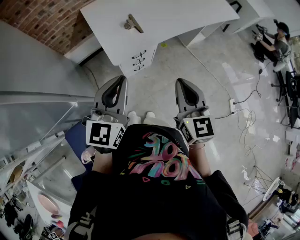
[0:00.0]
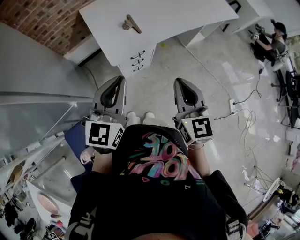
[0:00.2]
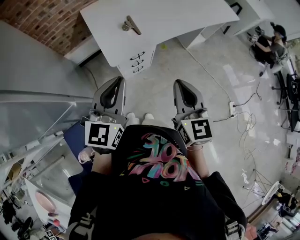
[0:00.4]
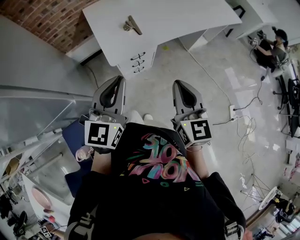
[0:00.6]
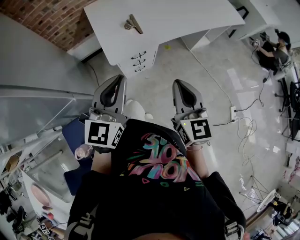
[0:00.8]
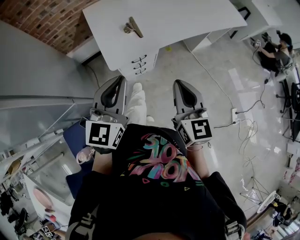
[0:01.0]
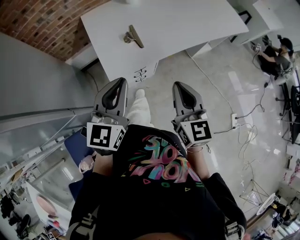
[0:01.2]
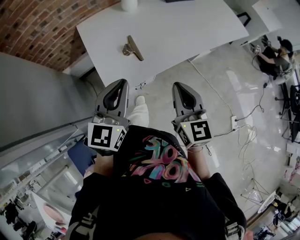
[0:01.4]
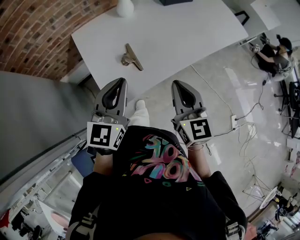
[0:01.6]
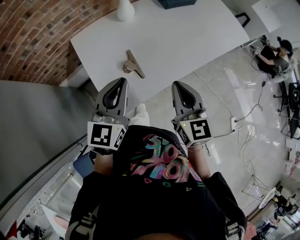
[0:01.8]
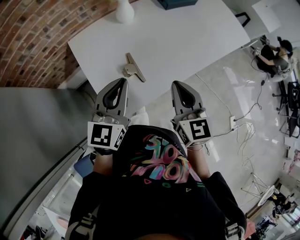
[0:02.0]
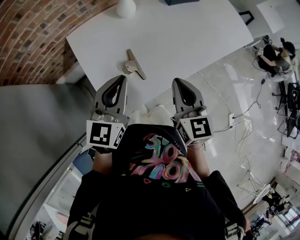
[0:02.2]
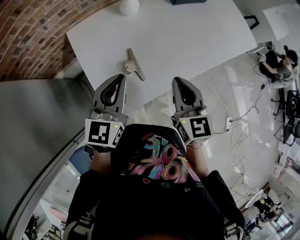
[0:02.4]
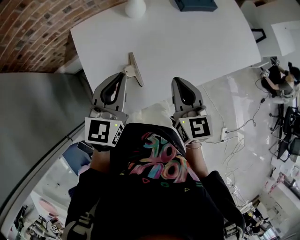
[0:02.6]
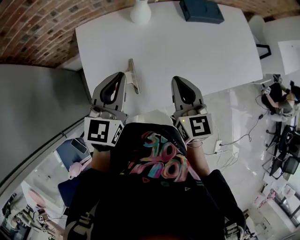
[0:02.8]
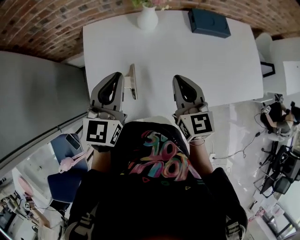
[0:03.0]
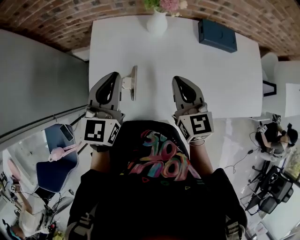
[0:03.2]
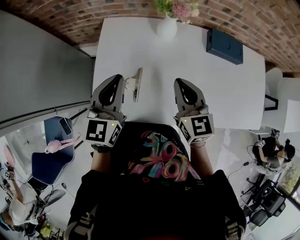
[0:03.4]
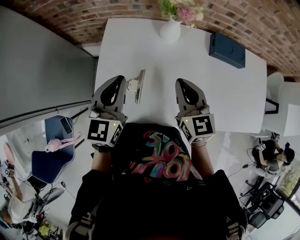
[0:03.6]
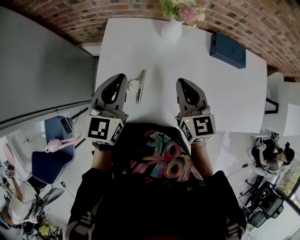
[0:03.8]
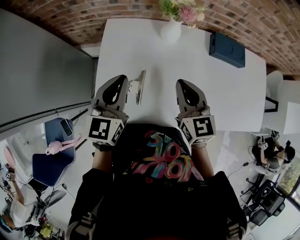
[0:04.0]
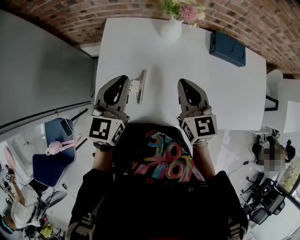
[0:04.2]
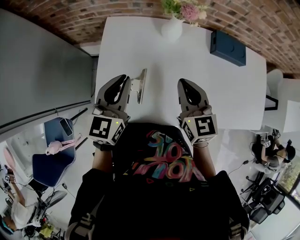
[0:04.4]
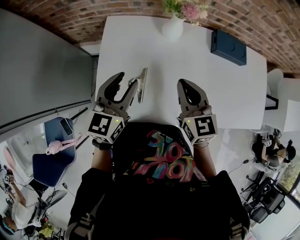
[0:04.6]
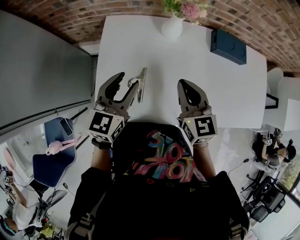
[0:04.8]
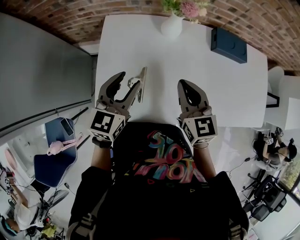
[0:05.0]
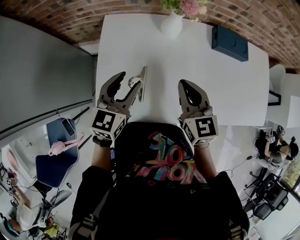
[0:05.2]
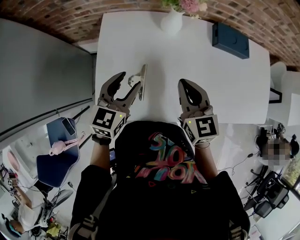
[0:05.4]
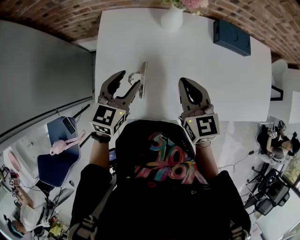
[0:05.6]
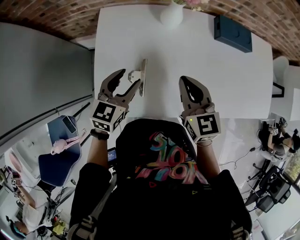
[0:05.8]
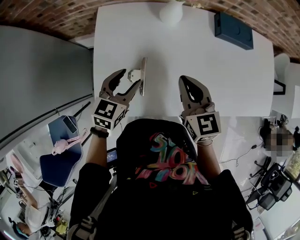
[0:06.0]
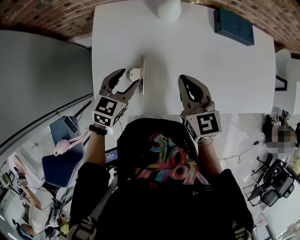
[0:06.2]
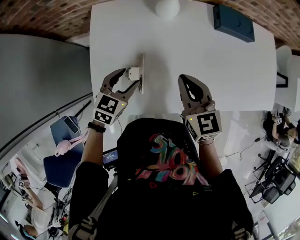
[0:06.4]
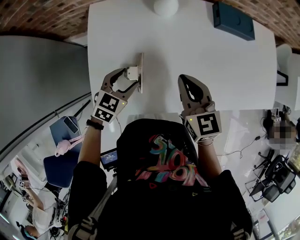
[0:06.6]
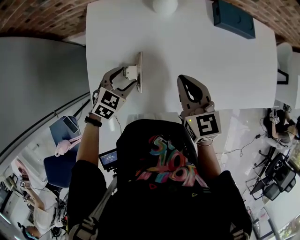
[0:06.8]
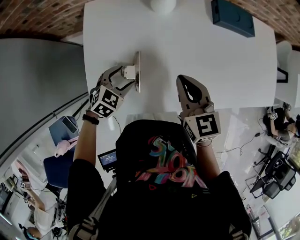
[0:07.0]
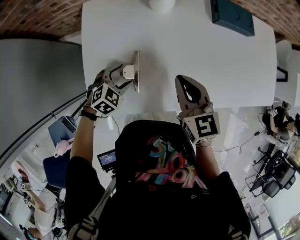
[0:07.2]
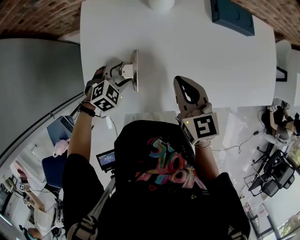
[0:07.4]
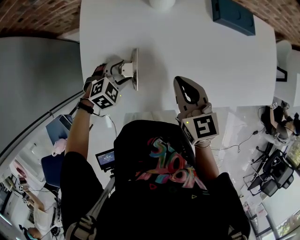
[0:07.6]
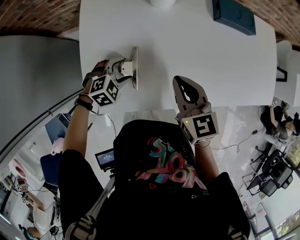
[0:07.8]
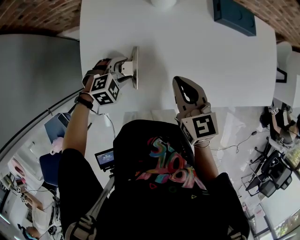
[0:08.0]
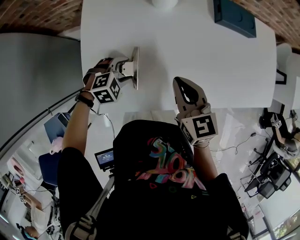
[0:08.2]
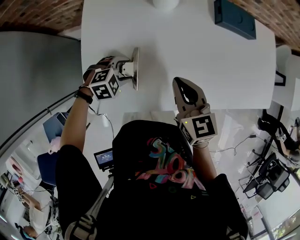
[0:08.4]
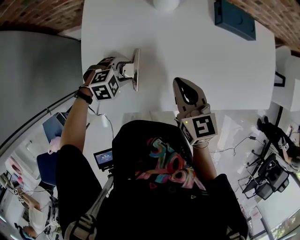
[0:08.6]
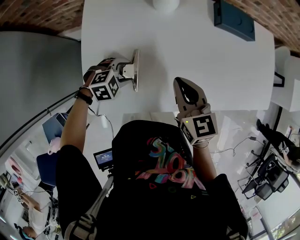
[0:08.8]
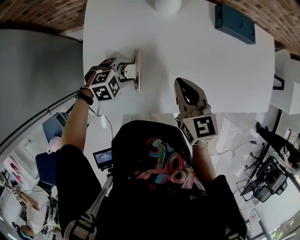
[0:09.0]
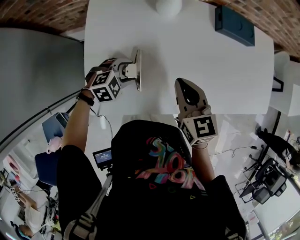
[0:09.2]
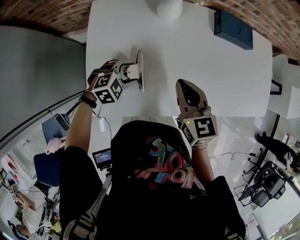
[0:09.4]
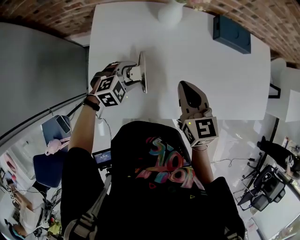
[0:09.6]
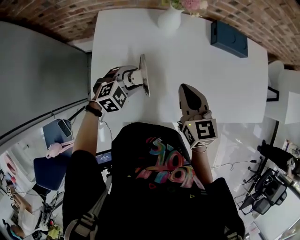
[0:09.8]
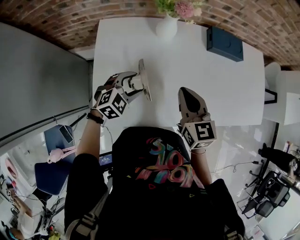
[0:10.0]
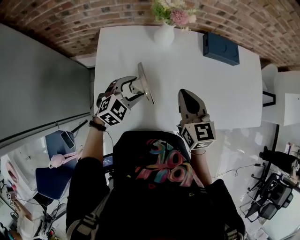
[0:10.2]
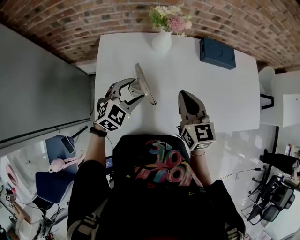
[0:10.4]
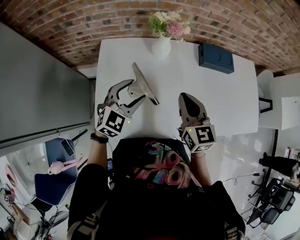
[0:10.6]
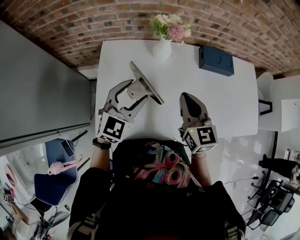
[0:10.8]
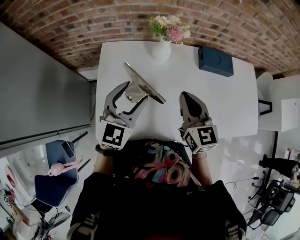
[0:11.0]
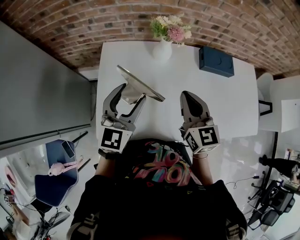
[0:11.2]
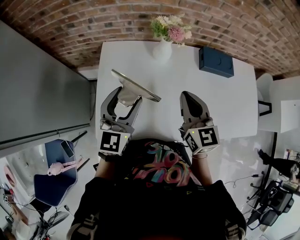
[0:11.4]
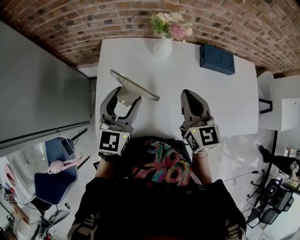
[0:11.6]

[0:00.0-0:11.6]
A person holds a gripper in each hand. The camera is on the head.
0:00.0 to 0:01.4: The two grippers go approximately 20 cm forward.
0:01.4 to 0:02.8: The grippers both shift forward by roughly 30 cm.
0:02.8 to 0:04.4: The right gripper goes some 10 cm forward, and swivels about 20 degrees.
0:04.4 to 0:05.8: The right gripper moves some 5 cm. Meanwhile the left gripper travels downward by about 10 cm, and opens up.
0:05.8 to 0:07.2: The left gripper goes some 15 cm downward, and rotates approximately 40 degrees.
0:07.2 to 0:08.8: The left gripper rotates some 20 degrees.
0:08.8 to 0:10.2: The left gripper moves upward, some 15 cm, and changes its angle by roughly 30 degrees, while the right gripper is displaced upward by some 10 cm.
0:10.2 to 0:11.6: The right gripper moves upward, about 5 cm. The left gripper travels upward by roughly 15 cm, and tips its fingers upward by about 30 degrees.

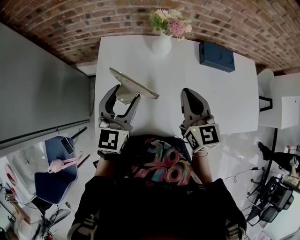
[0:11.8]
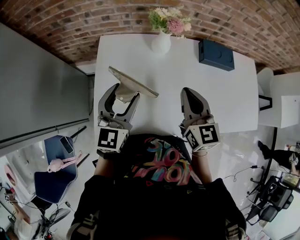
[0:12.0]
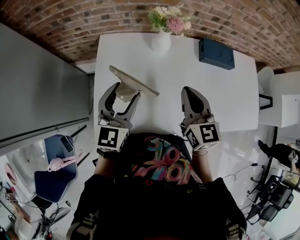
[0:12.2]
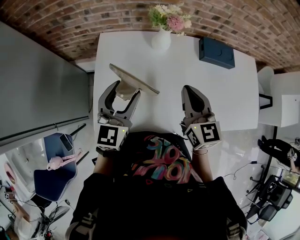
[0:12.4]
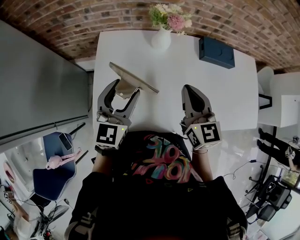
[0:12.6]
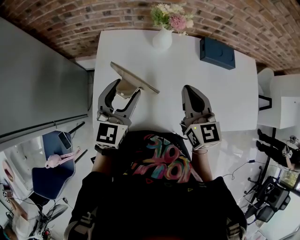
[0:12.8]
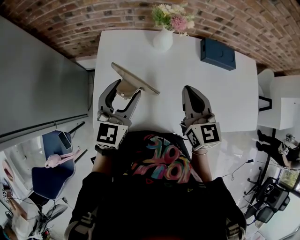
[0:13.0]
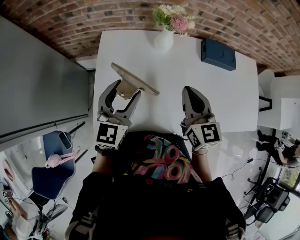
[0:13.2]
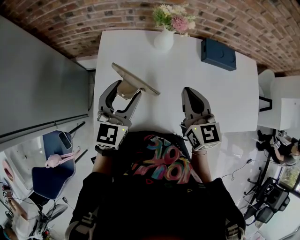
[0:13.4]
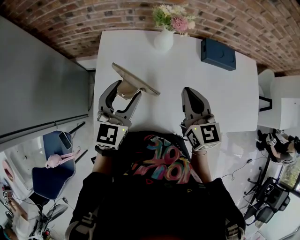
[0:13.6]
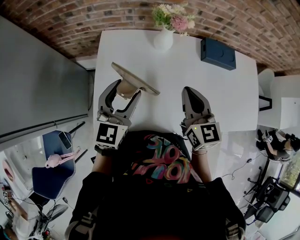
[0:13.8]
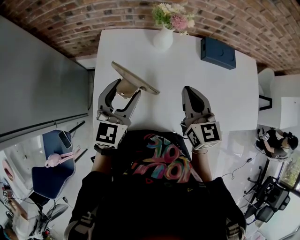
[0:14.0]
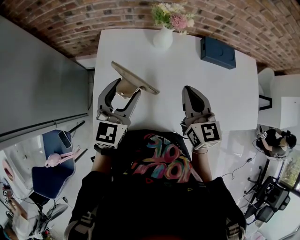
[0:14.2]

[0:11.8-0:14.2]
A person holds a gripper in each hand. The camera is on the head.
0:11.8 to 0:13.0: The grippers stay close to where they were, moving slightly.
0:13.0 to 0:14.2: Neither gripper changes place.

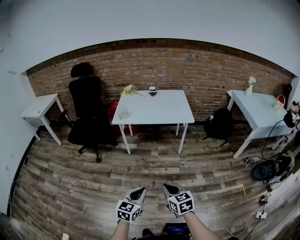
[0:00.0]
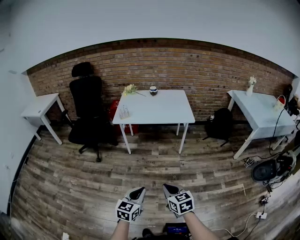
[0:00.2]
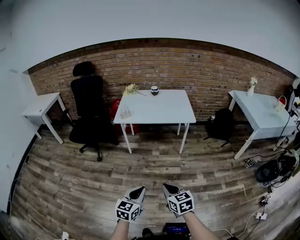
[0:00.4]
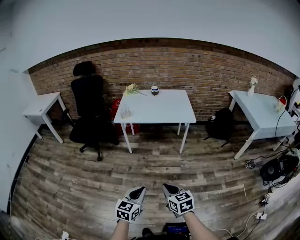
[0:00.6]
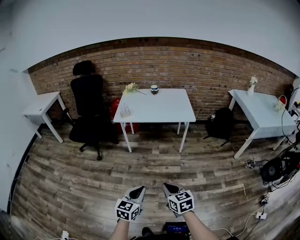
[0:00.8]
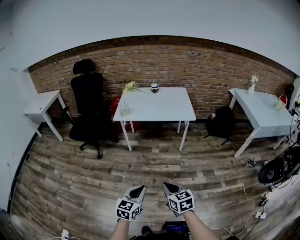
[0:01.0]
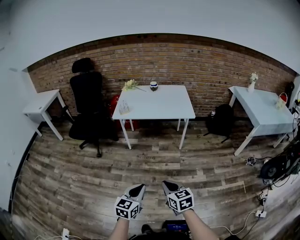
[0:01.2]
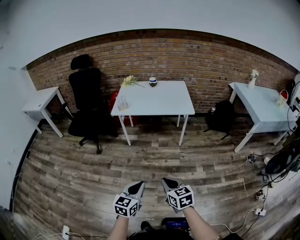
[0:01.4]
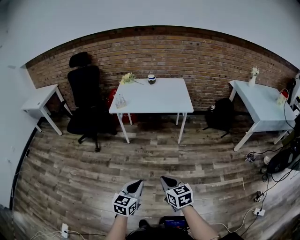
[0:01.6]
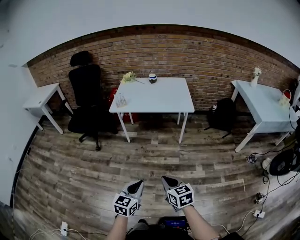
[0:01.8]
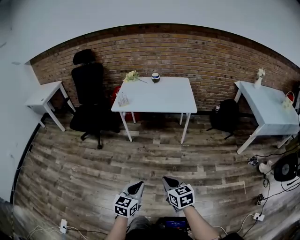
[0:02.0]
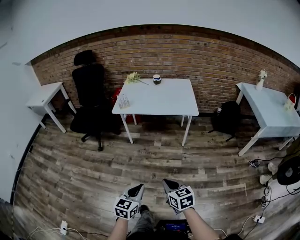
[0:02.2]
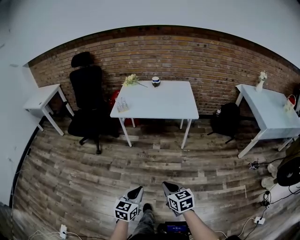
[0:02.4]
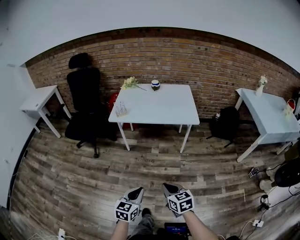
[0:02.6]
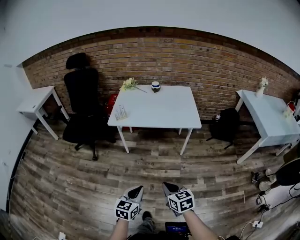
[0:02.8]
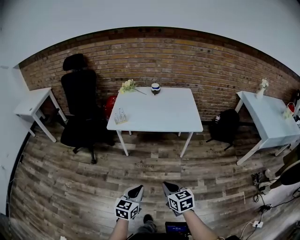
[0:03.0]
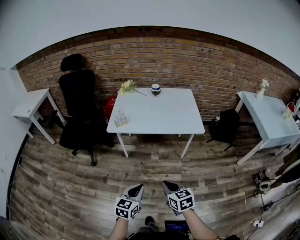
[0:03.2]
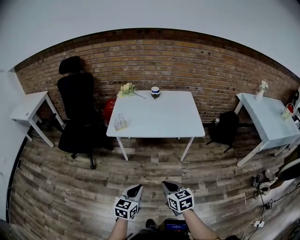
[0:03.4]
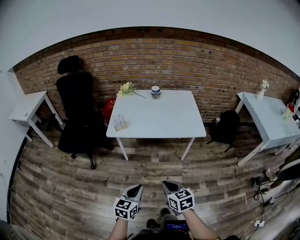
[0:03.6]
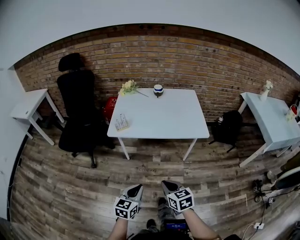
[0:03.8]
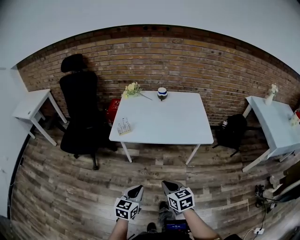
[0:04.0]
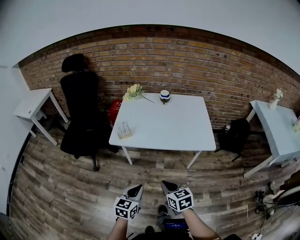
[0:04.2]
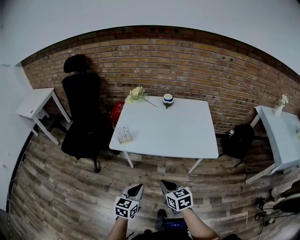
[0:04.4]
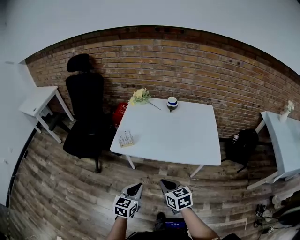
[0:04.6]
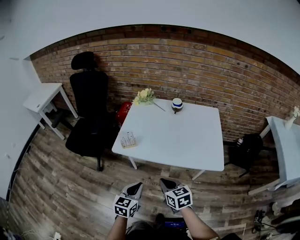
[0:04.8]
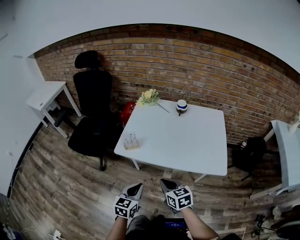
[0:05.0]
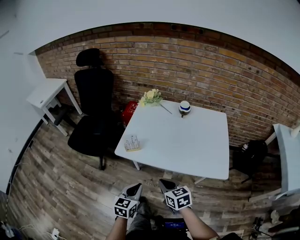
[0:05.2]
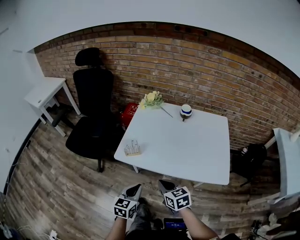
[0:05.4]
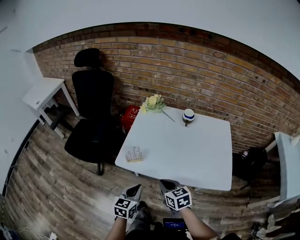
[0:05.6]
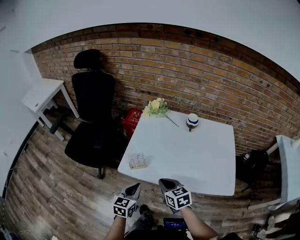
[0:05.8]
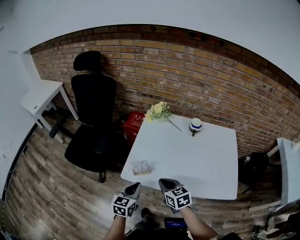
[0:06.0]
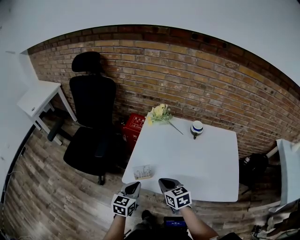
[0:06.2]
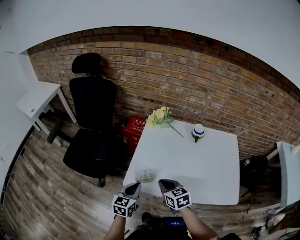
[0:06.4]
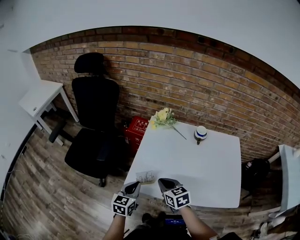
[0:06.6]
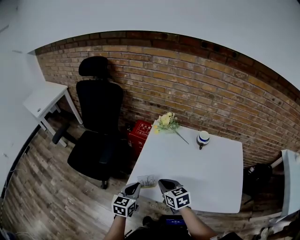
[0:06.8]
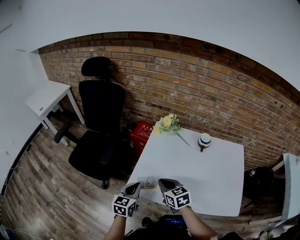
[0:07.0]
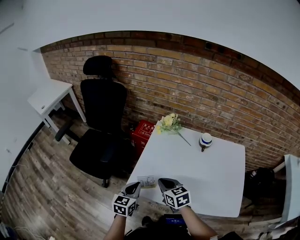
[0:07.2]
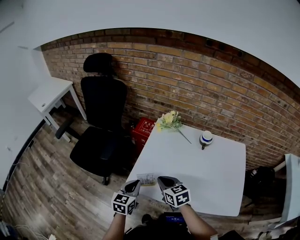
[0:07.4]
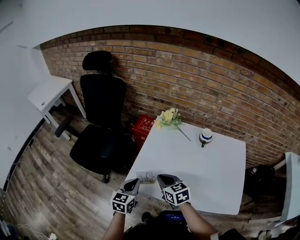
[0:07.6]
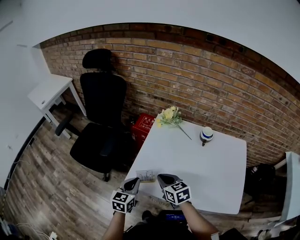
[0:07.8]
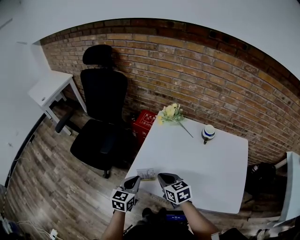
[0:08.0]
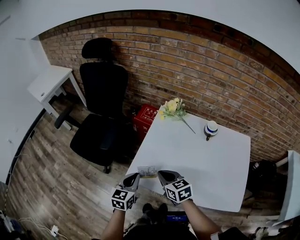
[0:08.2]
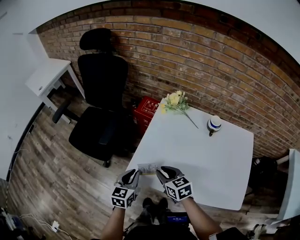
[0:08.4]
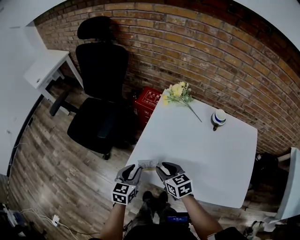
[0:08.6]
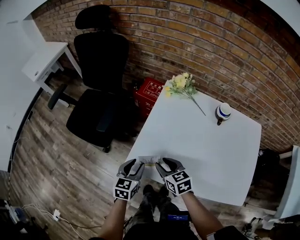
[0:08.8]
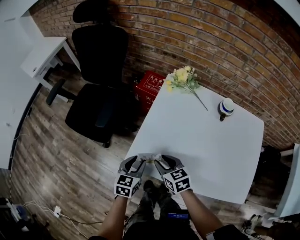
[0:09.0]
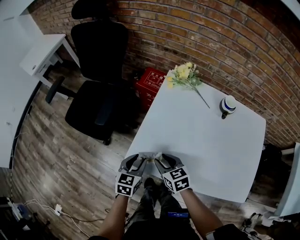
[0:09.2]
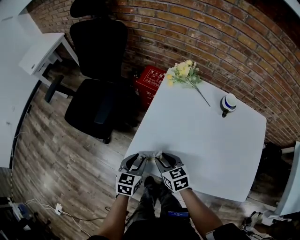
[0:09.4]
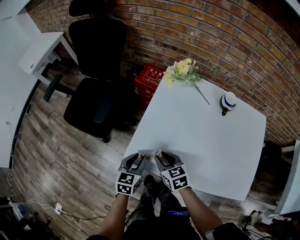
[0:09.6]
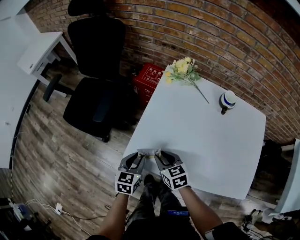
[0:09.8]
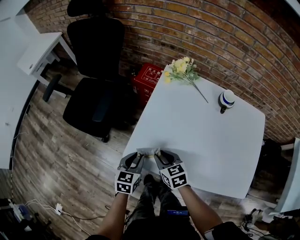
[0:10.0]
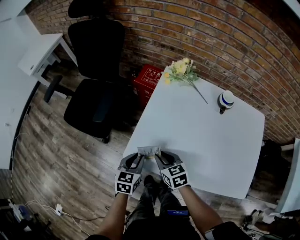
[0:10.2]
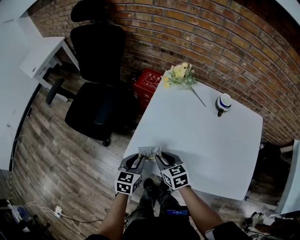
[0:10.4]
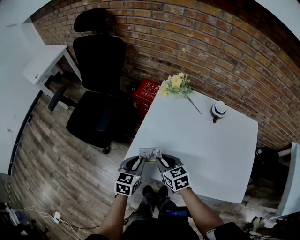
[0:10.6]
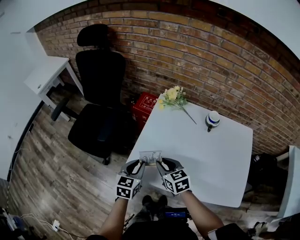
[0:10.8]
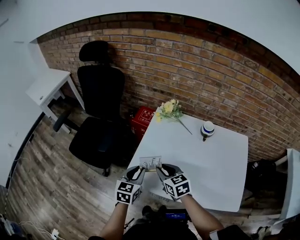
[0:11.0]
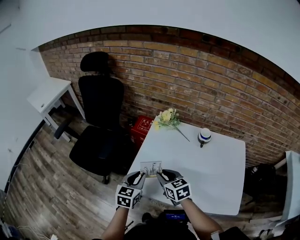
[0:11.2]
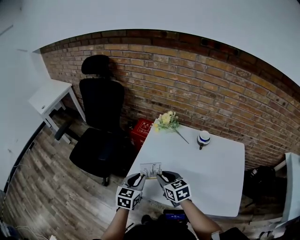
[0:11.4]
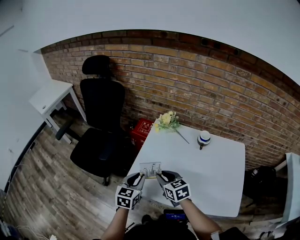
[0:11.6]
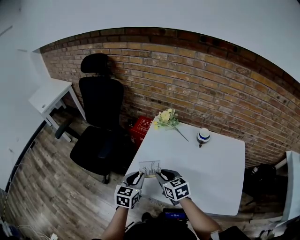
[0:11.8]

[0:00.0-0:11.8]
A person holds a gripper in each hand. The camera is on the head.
0:00.0 to 0:01.4: The grippers move only a little.
0:01.4 to 0:03.0: The two grippers go about 20 cm forward.
0:03.0 to 0:04.4: Both grippers move forward, roughly 25 cm.
0:04.4 to 0:06.0: Both grippers move forward, some 30 cm.
0:06.0 to 0:07.4: Both grippers move forward, some 10 cm.
0:07.4 to 0:08.8: Both grippers move downward, roughly 10 cm. The right gripper opens its fingers. The left gripper opens its fingers.
0:08.8 to 0:10.4: The grippers make only small movements.
0:10.4 to 0:11.8: Both grippers move upward, roughly 10 cm.
